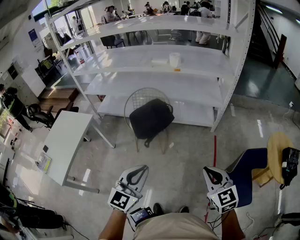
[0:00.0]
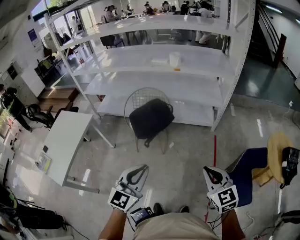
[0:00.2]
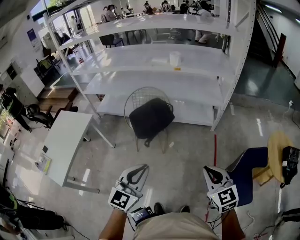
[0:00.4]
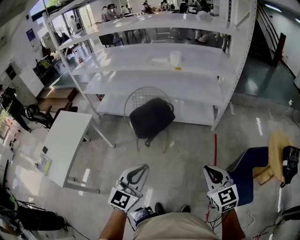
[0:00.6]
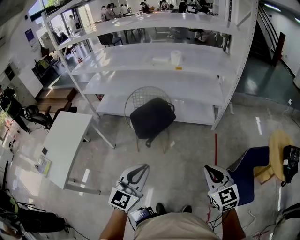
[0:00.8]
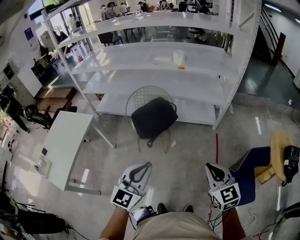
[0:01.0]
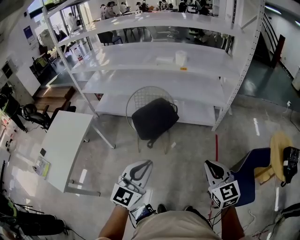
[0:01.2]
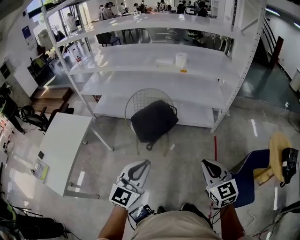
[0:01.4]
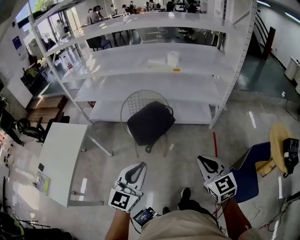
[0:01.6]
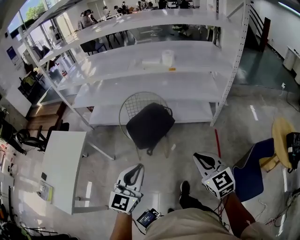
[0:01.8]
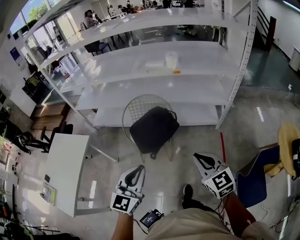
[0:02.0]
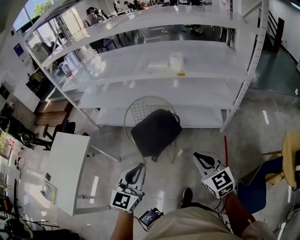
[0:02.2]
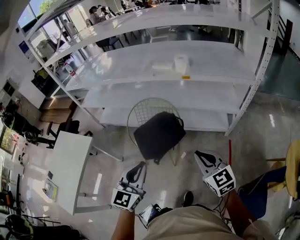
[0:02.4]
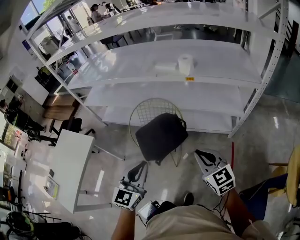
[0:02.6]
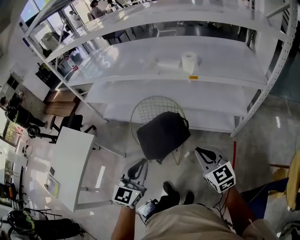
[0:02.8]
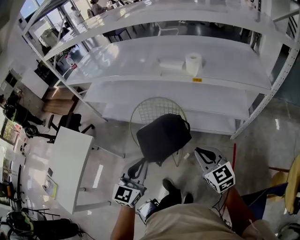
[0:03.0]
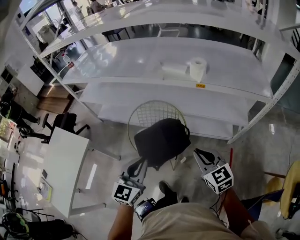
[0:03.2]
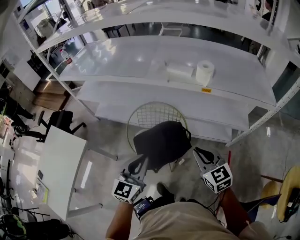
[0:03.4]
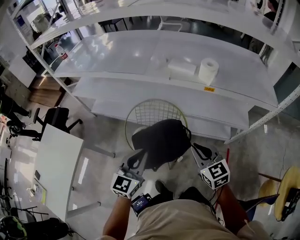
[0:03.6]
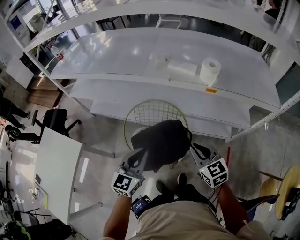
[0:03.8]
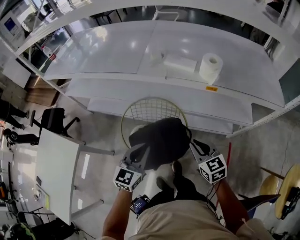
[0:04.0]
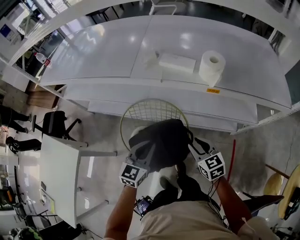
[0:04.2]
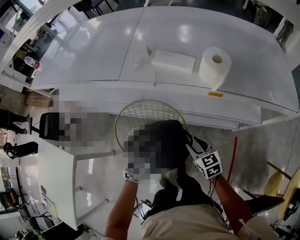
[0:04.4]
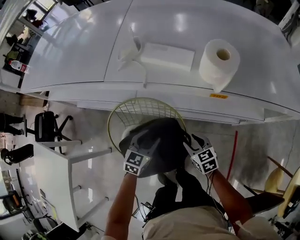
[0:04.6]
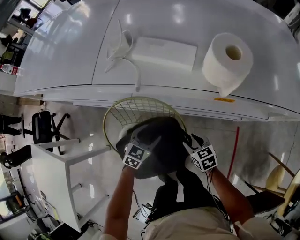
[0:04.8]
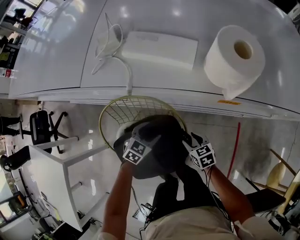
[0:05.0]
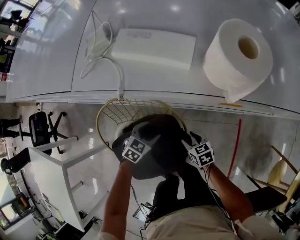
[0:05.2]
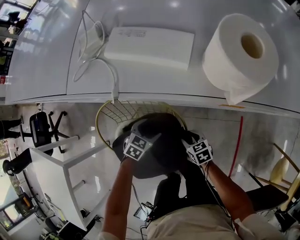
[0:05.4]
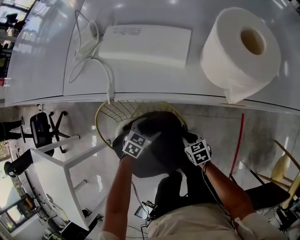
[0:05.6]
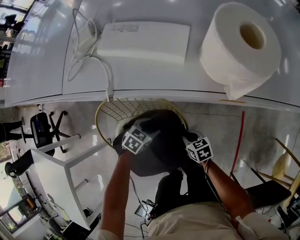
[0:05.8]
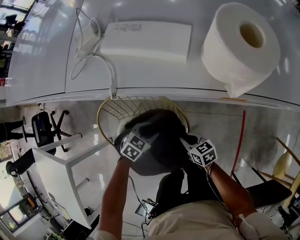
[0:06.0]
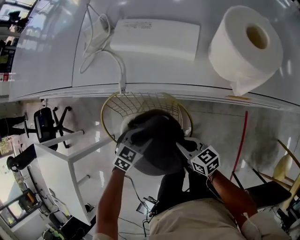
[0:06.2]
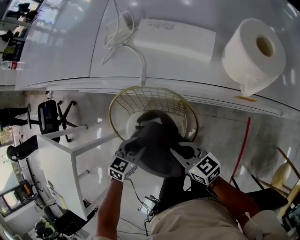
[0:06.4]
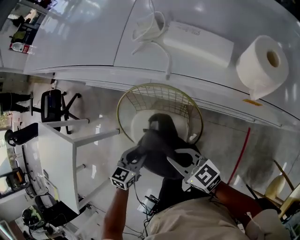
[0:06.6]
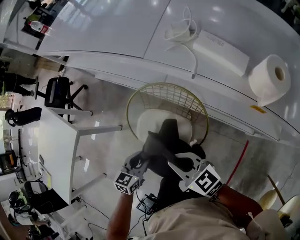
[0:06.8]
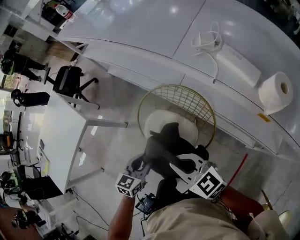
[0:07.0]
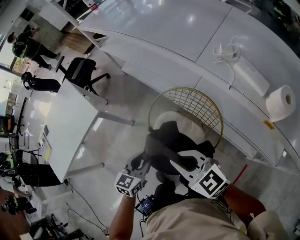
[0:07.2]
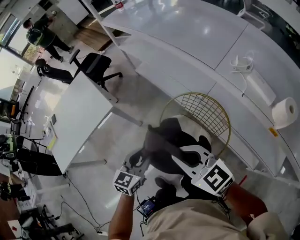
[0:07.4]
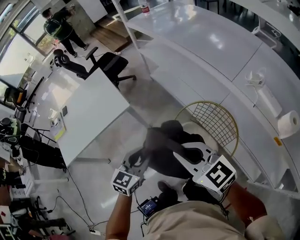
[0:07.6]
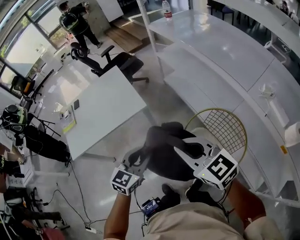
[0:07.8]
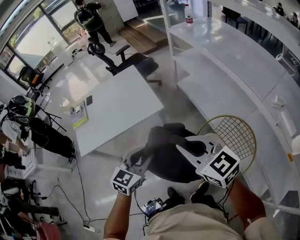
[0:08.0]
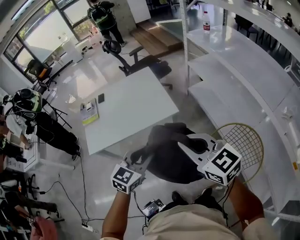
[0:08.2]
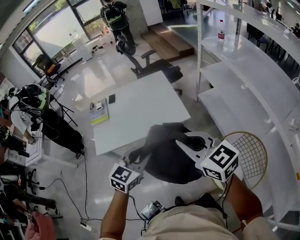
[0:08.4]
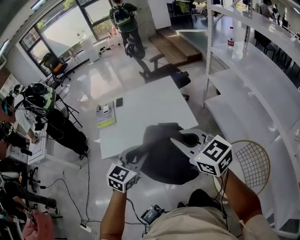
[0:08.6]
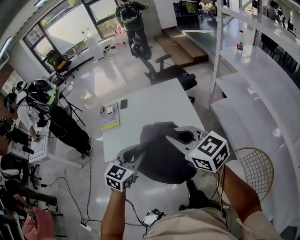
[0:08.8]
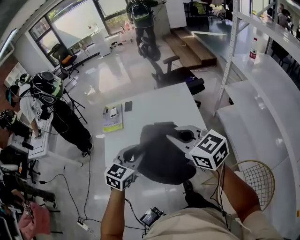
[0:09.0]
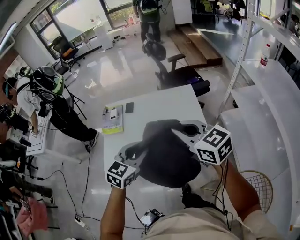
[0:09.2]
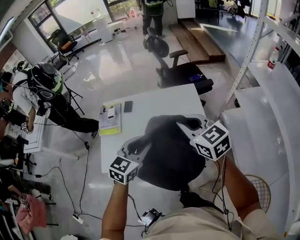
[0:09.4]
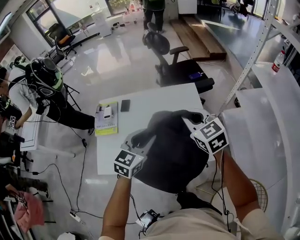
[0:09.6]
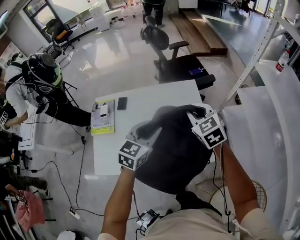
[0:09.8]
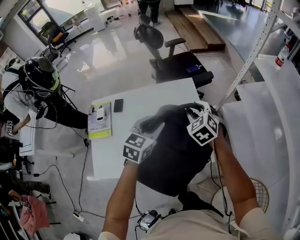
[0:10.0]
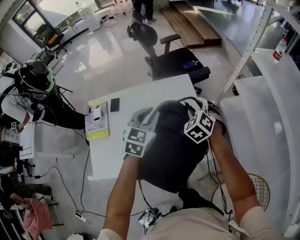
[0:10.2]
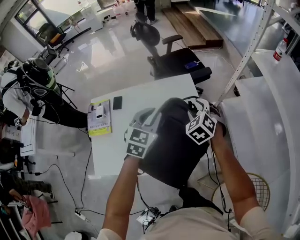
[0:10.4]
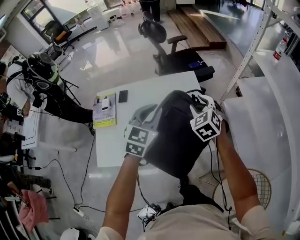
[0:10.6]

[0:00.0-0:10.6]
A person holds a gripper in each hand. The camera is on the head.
0:00.0 to 0:01.6: The grippers both shift to the left and forward by about 15 cm.
0:01.6 to 0:03.0: Both grippers travel together forward, roughly 30 cm.
0:03.0 to 0:04.6: The left gripper travels forward and downward by approximately 50 cm, turns by approximately 30 degrees, and opens its fingers; the right gripper travels downward and forward by some 40 cm, turns by some 30 degrees, and opens up.
0:04.6 to 0:06.0: The grippers both shift downward by some 15 cm. The right gripper swivels roughly 20 degrees, and closes up. Meanwhile the left gripper rotates some 30 degrees, and opens and closes again.
0:06.0 to 0:07.6: The left gripper changes place by approximately 50 cm, and turns by about 70 degrees; the right gripper is displaced upward by roughly 50 cm, and rotates some 70 degrees.
0:07.6 to 0:09.0: The pair of grippers is taken approximately 50 cm. The left gripper swivels about 30 degrees; the right gripper rotates roughly 30 degrees.
0:09.0 to 0:10.6: The right gripper goes approximately 35 cm forward and downward, changes its angle by about 50 degrees, and opens up; the left gripper heads forward, covering approximately 25 cm.

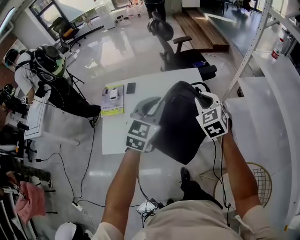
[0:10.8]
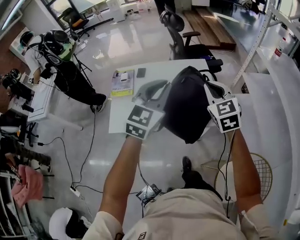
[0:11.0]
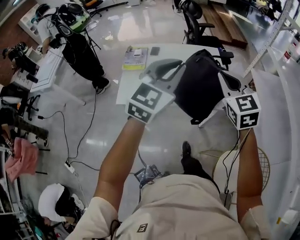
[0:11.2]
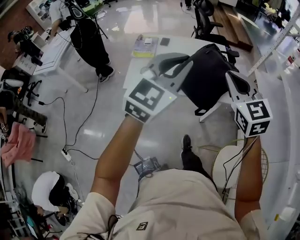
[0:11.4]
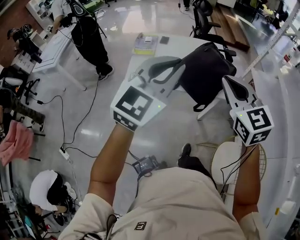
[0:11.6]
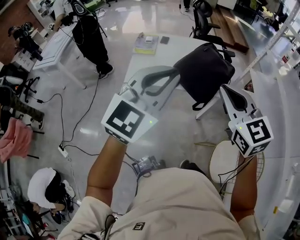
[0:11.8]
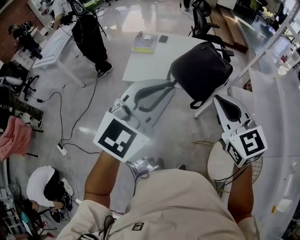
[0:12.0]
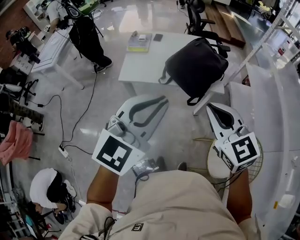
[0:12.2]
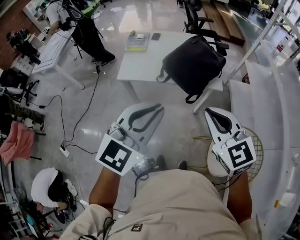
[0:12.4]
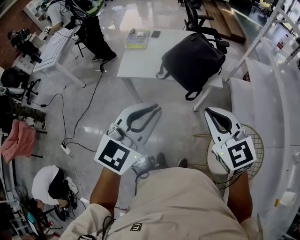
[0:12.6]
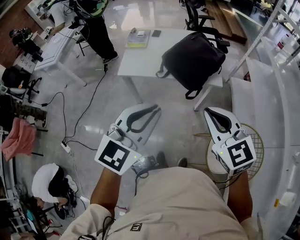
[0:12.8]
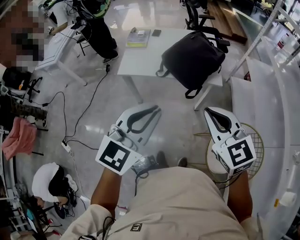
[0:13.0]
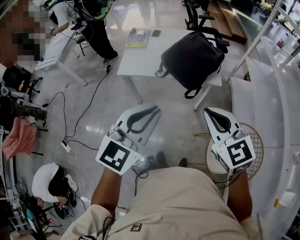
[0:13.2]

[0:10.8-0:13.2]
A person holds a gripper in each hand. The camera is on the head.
0:10.8 to 0:12.0: The pair of grippers is taken backward, about 40 cm. The right gripper swivels some 30 degrees.
0:12.0 to 0:13.2: The right gripper travels backward and to the right by about 10 cm. The left gripper heads backward and downward, covering roughly 10 cm.

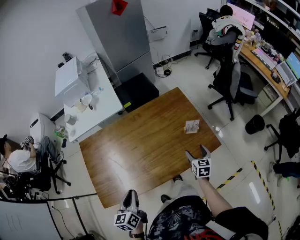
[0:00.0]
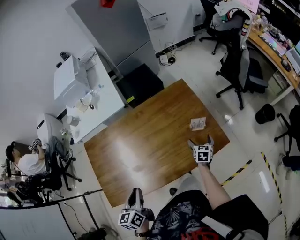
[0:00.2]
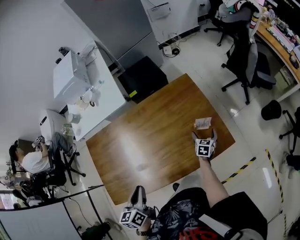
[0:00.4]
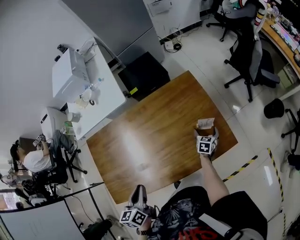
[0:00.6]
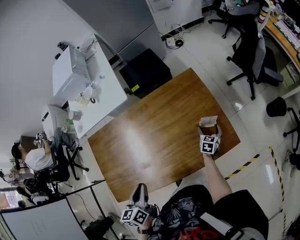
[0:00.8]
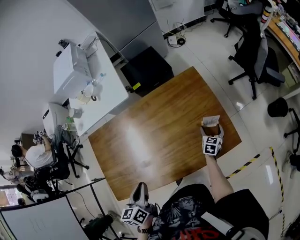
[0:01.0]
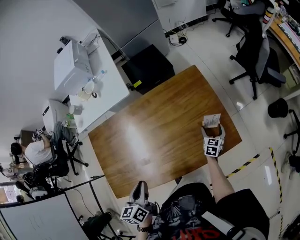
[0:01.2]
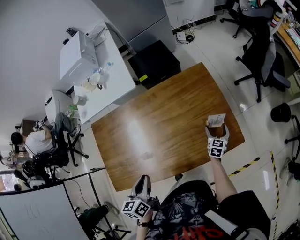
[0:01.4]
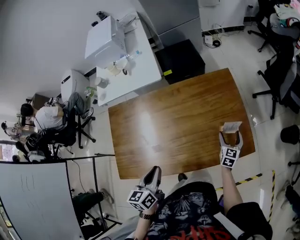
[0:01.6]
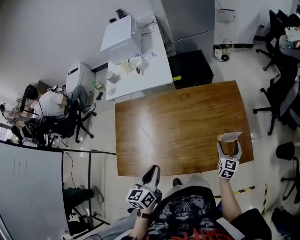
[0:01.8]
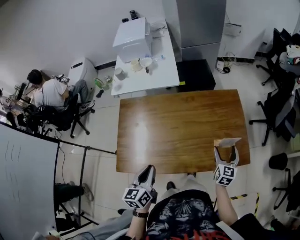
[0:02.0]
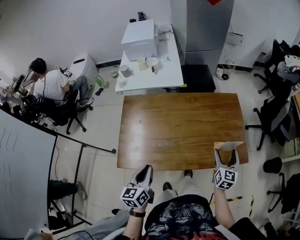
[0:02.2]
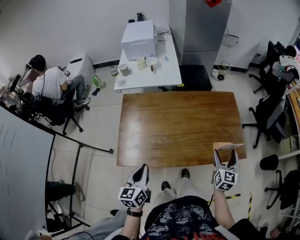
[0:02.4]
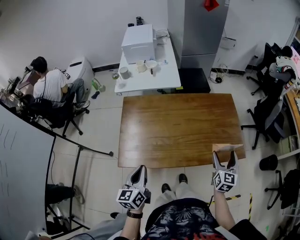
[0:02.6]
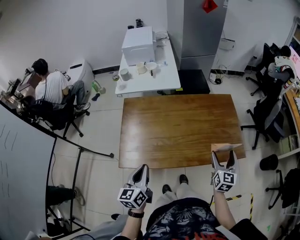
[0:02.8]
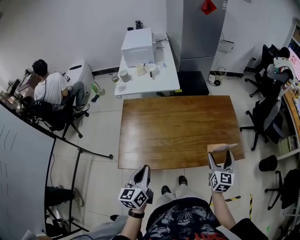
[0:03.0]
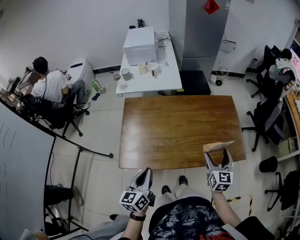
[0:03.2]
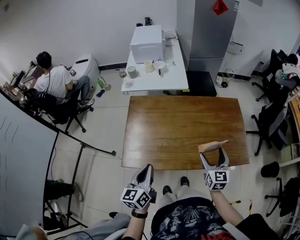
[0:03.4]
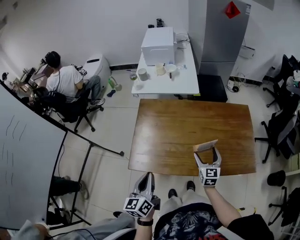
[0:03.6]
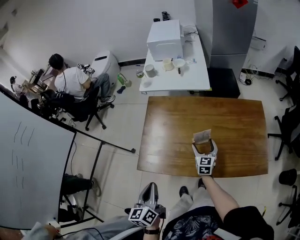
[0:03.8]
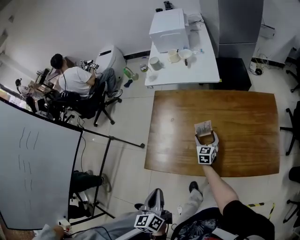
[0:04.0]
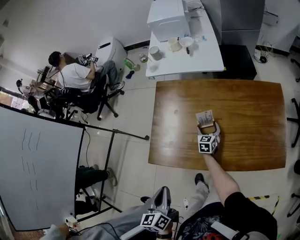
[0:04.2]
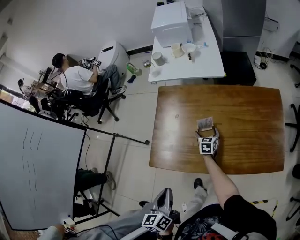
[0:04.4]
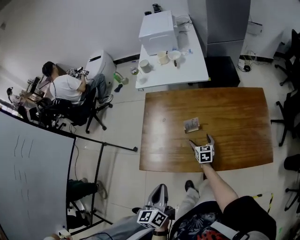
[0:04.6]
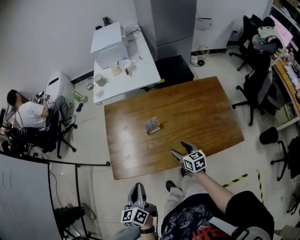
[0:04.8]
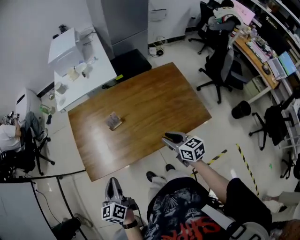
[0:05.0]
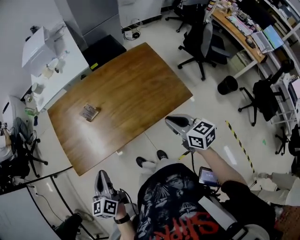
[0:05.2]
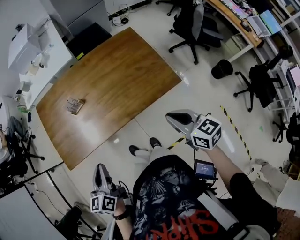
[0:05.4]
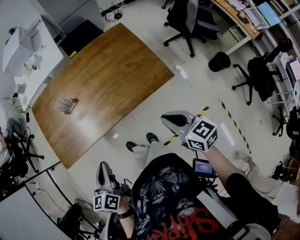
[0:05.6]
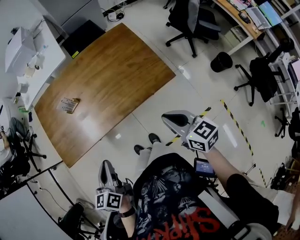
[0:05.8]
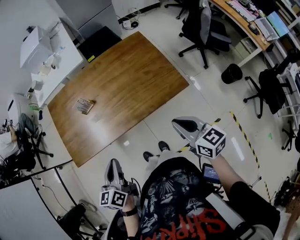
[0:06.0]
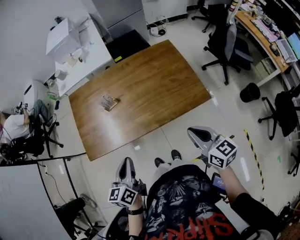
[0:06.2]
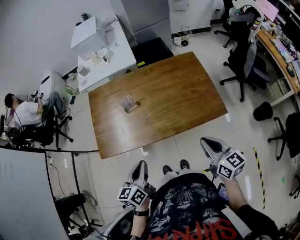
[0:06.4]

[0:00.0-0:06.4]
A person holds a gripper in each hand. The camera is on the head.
0:00.0 to 0:01.6: The right gripper travels forward by roughly 15 cm; the left gripper is displaced forward and to the right by about 10 cm.
0:01.6 to 0:03.2: The left gripper shifts roughly 25 cm backward and to the left. Meanwhile the right gripper is displaced upward, to the left and backward by roughly 35 cm, and turns by approximately 20 degrees.
0:03.2 to 0:04.8: The right gripper goes about 25 cm downward, to the left and forward, and turns by some 40 degrees; the left gripper changes place by roughly 5 cm.
0:04.8 to 0:06.4: The left gripper shifts about 20 cm to the right and backward, while the right gripper moves to the right, backward and upward, approximately 40 cm, and closes.

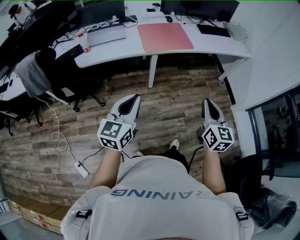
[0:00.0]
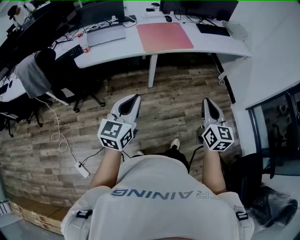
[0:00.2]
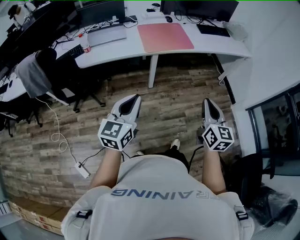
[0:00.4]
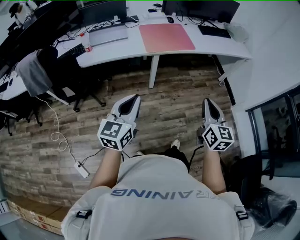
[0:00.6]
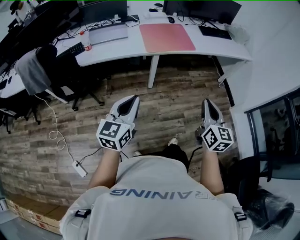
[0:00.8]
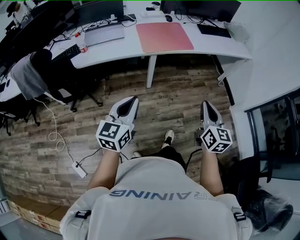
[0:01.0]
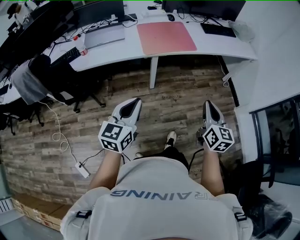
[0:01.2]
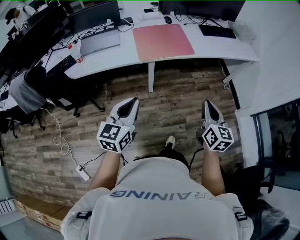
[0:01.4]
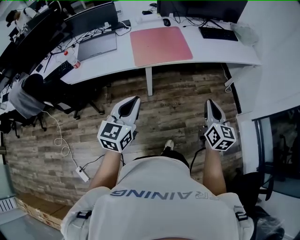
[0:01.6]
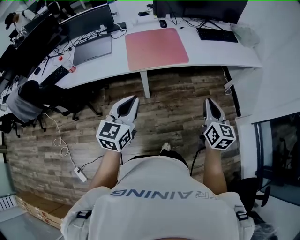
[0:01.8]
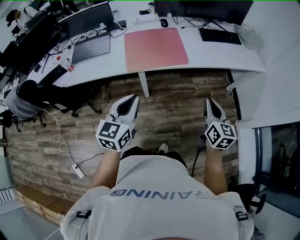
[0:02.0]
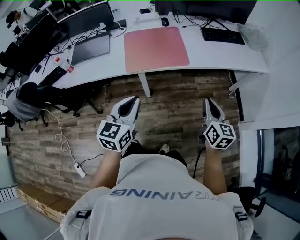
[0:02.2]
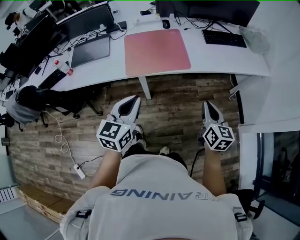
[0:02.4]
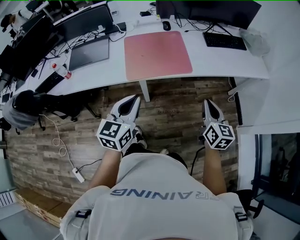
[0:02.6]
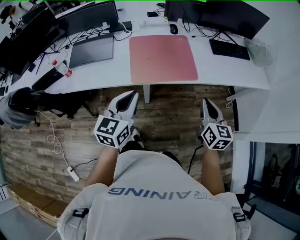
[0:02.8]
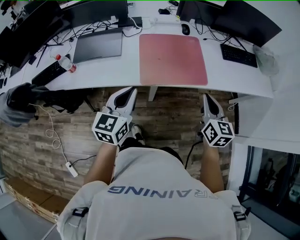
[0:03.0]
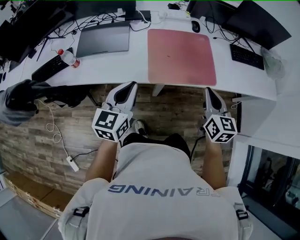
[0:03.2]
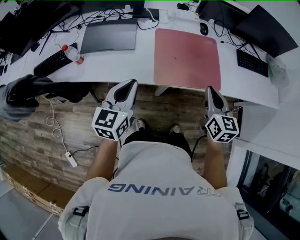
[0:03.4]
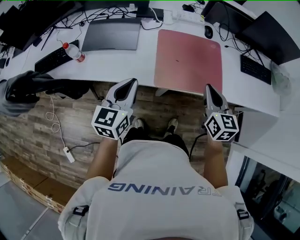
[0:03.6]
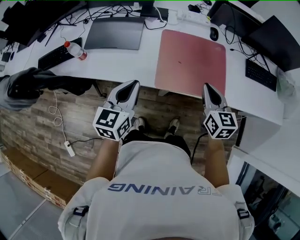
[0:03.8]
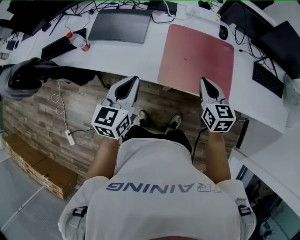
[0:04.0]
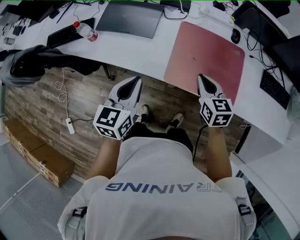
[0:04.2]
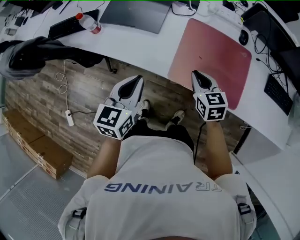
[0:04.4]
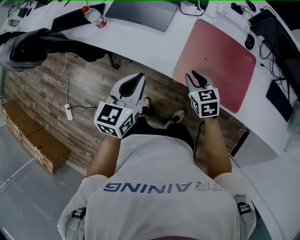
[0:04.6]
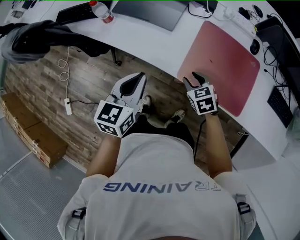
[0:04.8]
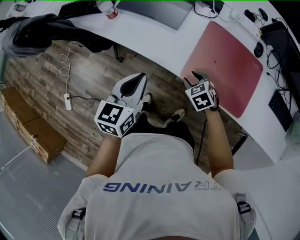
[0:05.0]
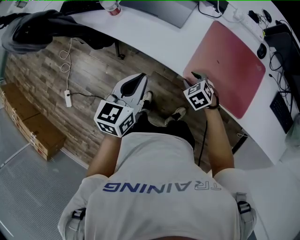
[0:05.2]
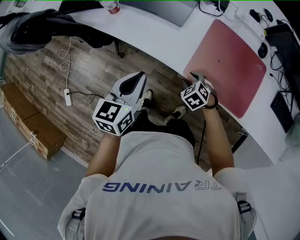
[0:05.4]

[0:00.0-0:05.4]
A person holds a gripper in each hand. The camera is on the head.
0:00.0 to 0:01.4: The grippers both shift forward by some 15 cm.
0:01.4 to 0:02.8: Both grippers move forward, approximately 25 cm.
0:02.8 to 0:04.0: The left gripper heads to the left and forward, covering some 15 cm; the right gripper shifts roughly 30 cm forward and to the left, and swivels some 30 degrees.
0:04.0 to 0:05.4: The right gripper travels downward and to the left by about 25 cm, points its fingers roughly 40 degrees further downward, and opens; the left gripper is displaced to the left and downward by roughly 10 cm.
